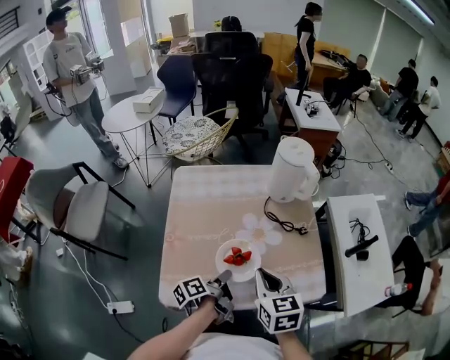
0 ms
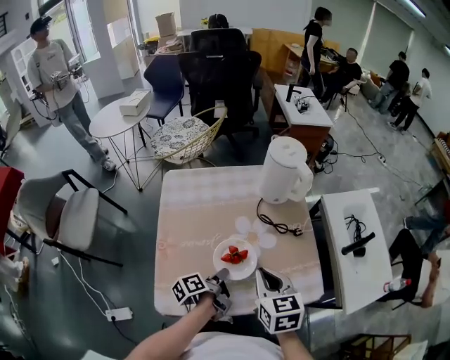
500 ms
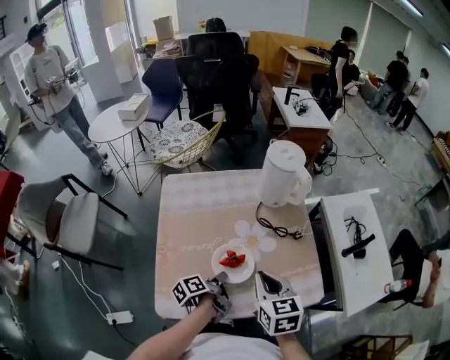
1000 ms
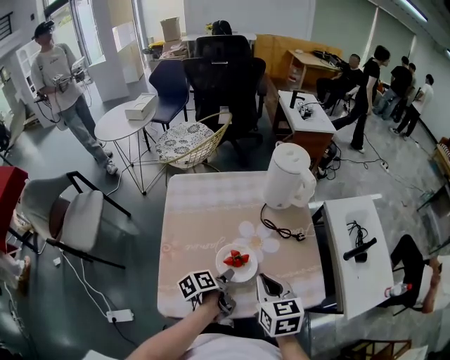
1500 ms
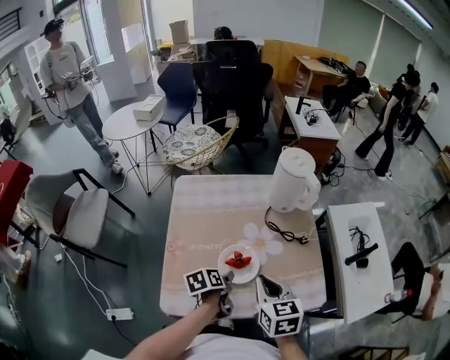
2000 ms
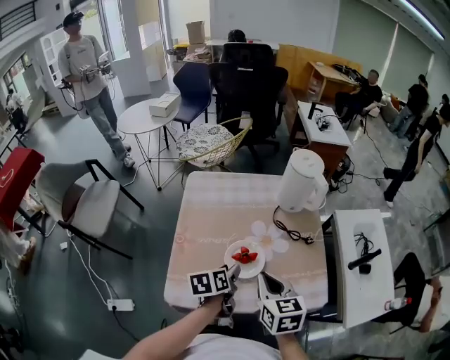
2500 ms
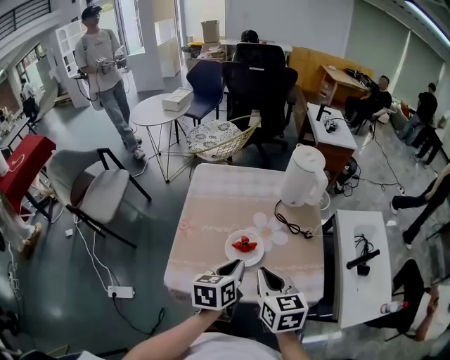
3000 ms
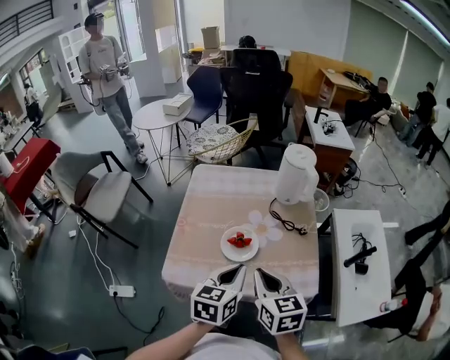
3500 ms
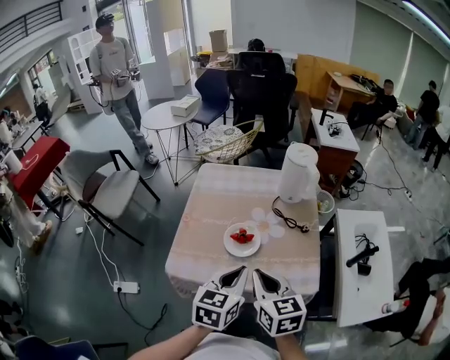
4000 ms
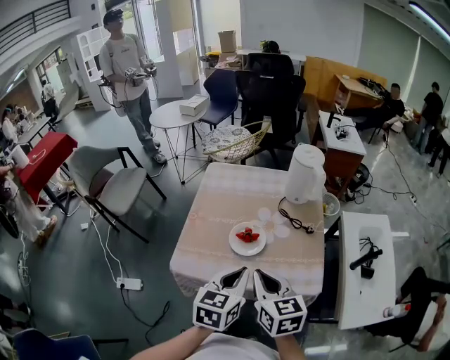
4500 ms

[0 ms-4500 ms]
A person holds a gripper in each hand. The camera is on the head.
2000 ms to 4500 ms: The right gripper moves roughly 15 cm.

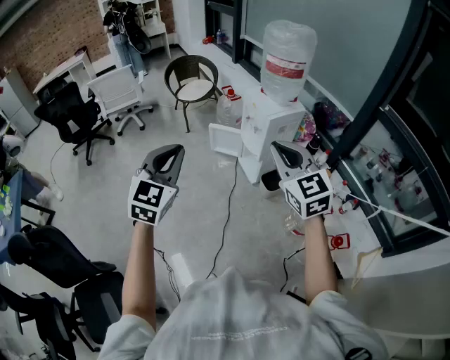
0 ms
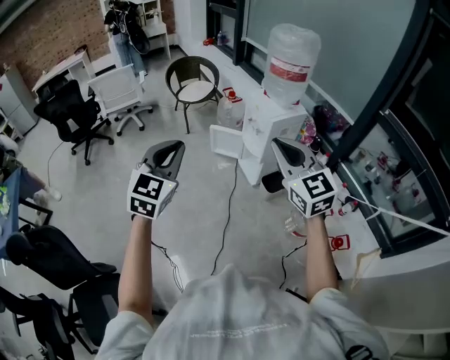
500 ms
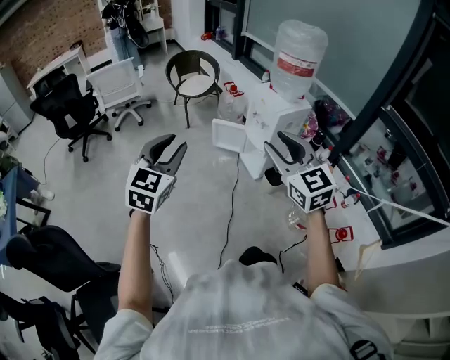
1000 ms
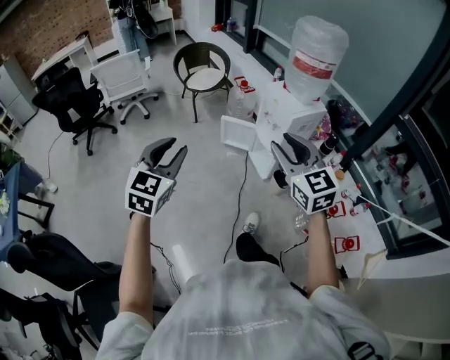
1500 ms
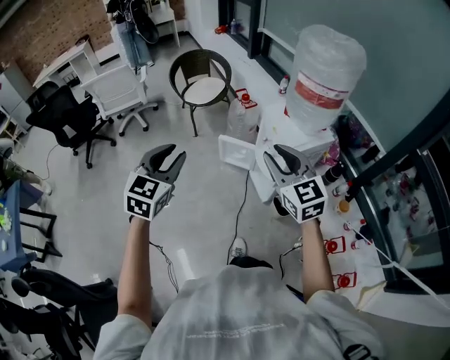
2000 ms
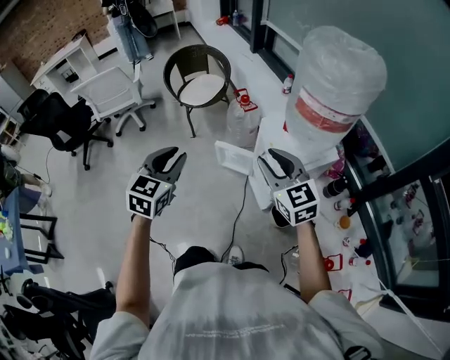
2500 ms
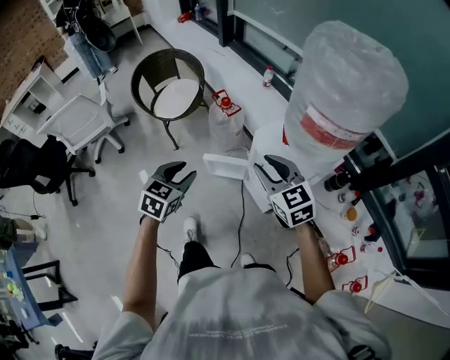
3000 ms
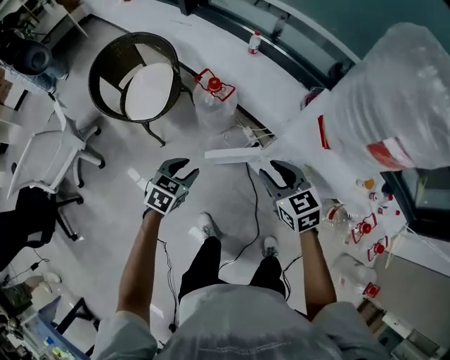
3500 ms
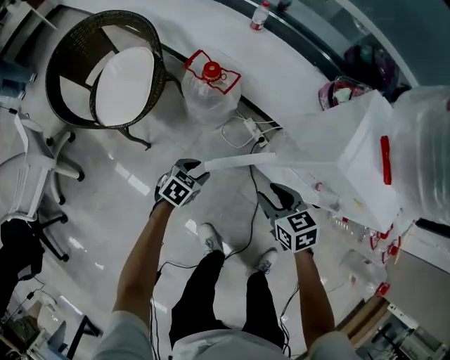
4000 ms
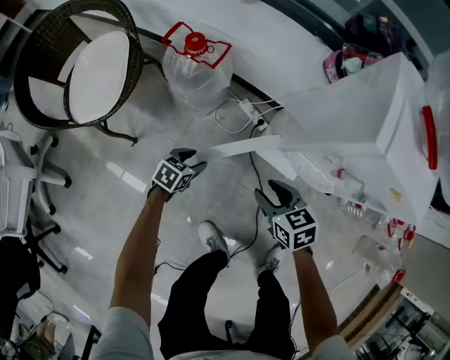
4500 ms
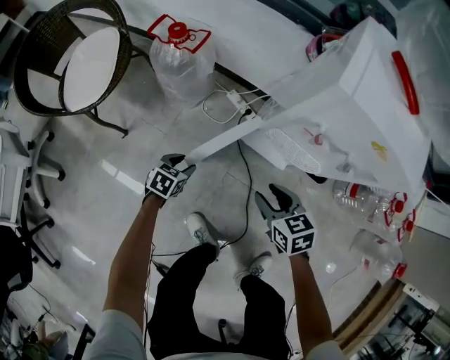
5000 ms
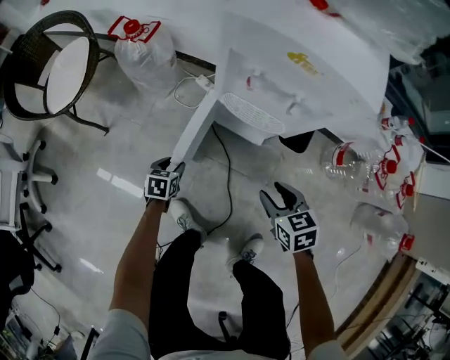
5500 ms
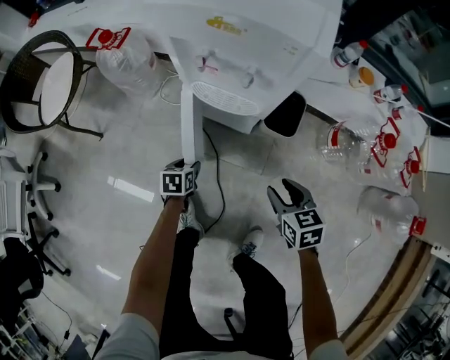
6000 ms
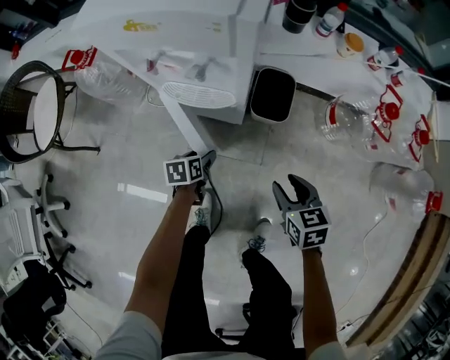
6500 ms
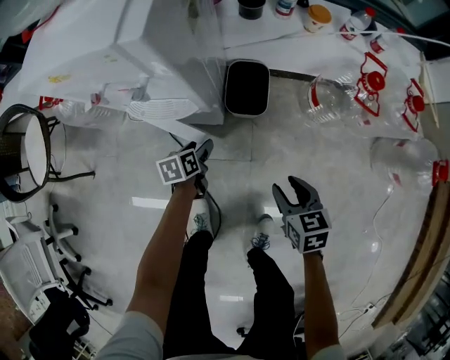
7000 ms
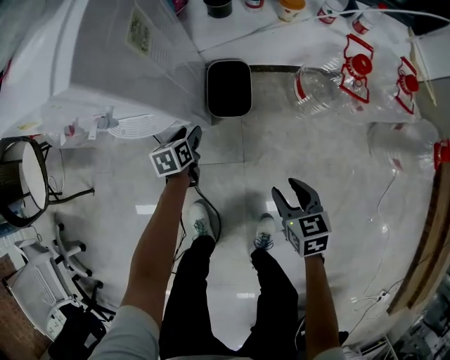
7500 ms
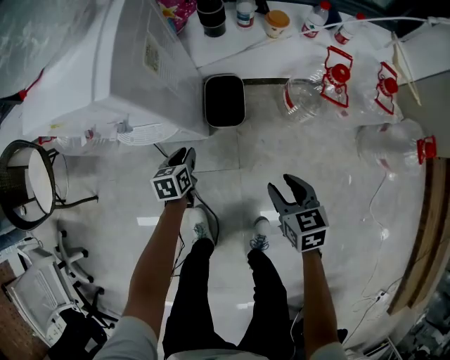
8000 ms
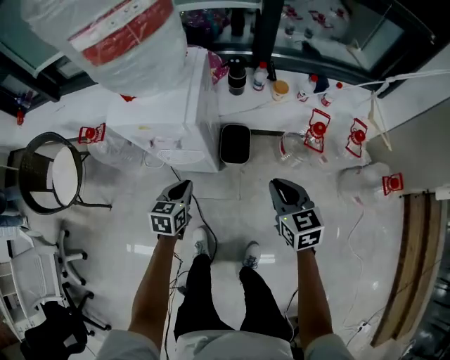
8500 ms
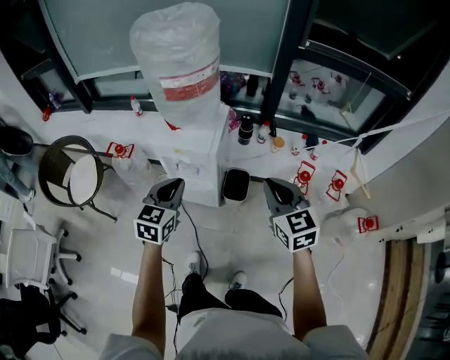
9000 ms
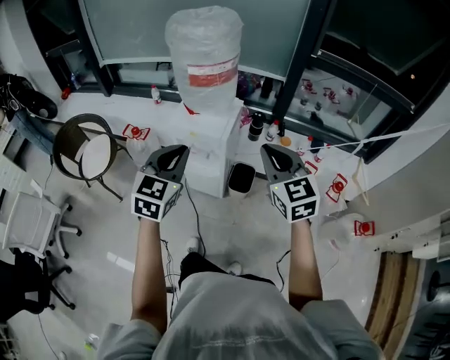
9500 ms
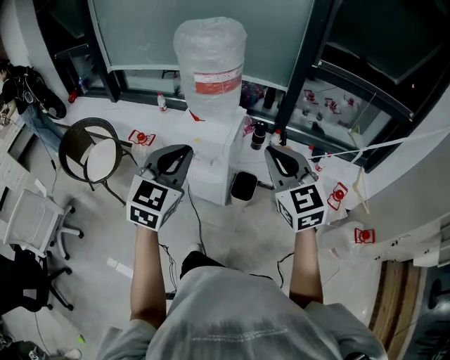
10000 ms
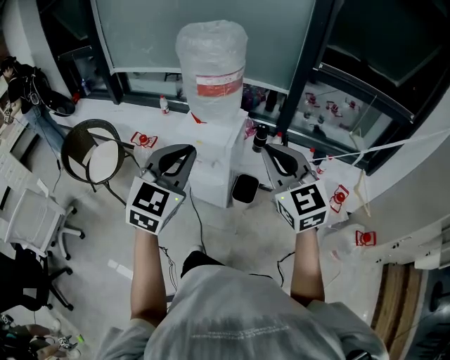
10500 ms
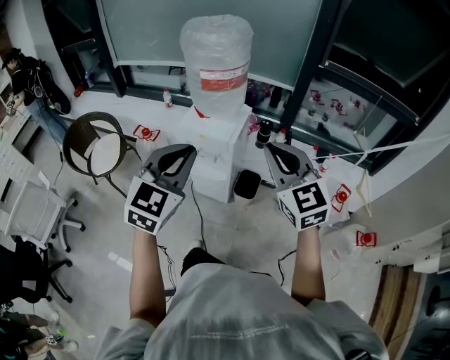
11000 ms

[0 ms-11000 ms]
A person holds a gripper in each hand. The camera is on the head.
0 ms to 2000 ms: Both grippers move forward, some 30 cm. The left gripper opens its fingers. Meanwhile the right gripper opens.
2000 ms to 3500 ms: The right gripper moves about 40 cm, and changes its angle by about 40 degrees. The left gripper moves about 60 cm, and rotates some 50 degrees.
3500 ms to 5500 ms: The right gripper moves downward, to the right and backward, about 40 cm, and changes its angle by approximately 30 degrees. Meanwhile the left gripper travels downward by roughly 40 cm.
5500 ms to 7500 ms: The left gripper shifts some 40 cm to the right and forward. Meanwhile the right gripper heads to the right, covering some 30 cm, and rotates roughly 30 degrees.
7500 ms to 9000 ms: The two grippers go some 60 cm upward. The left gripper swivels roughly 40 degrees, and closes up; the right gripper angles its fingers upward, by approximately 30 degrees, and closes its fingers.
9000 ms to 11000 ms: The left gripper heads upward and backward, covering some 25 cm, and changes its angle by some 20 degrees; the right gripper goes approximately 15 cm upward, and swivels some 20 degrees.

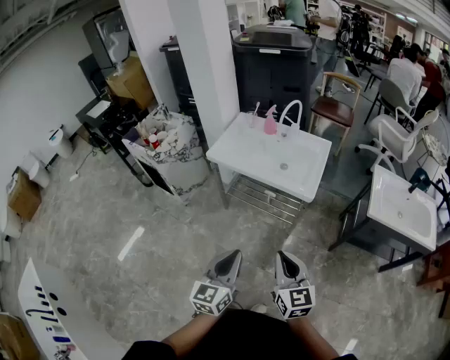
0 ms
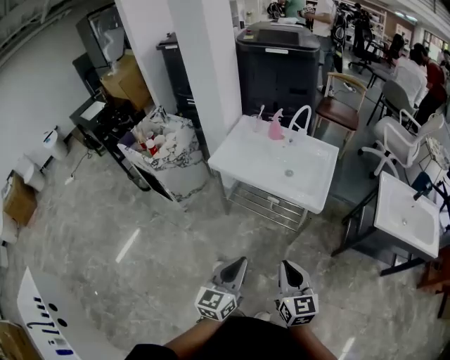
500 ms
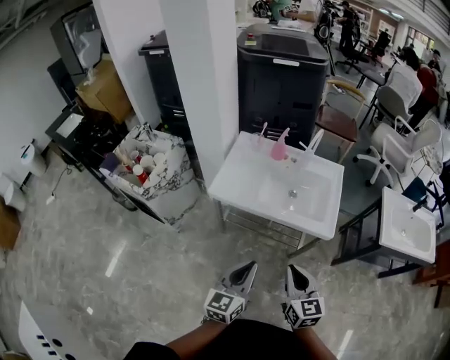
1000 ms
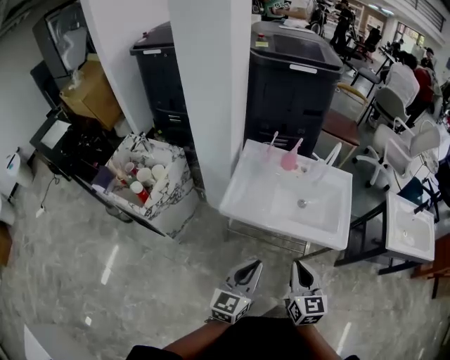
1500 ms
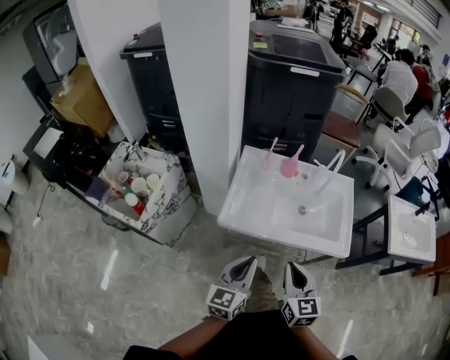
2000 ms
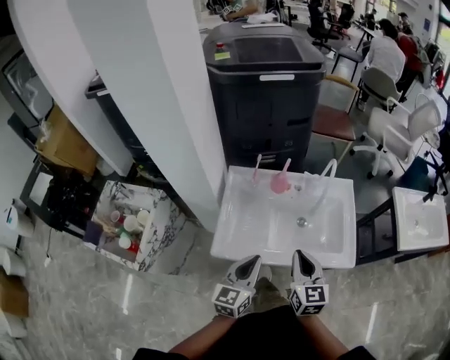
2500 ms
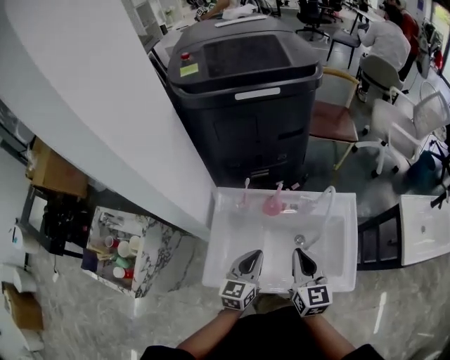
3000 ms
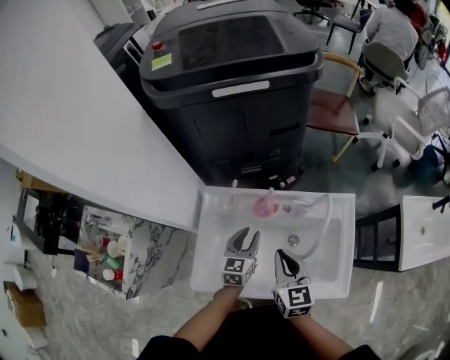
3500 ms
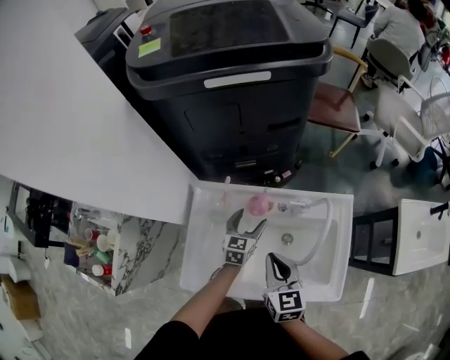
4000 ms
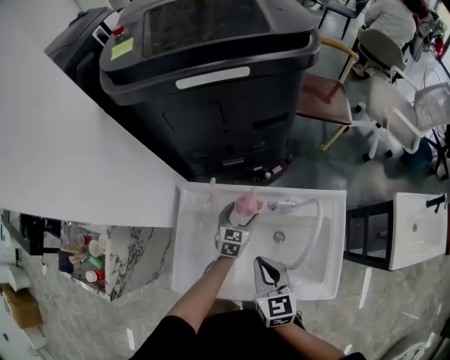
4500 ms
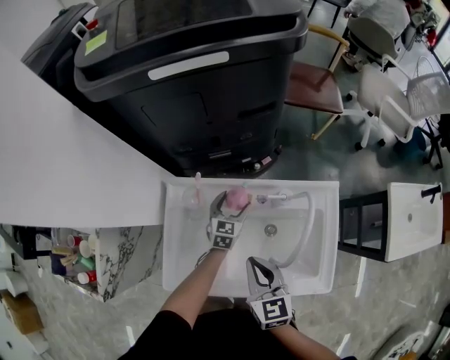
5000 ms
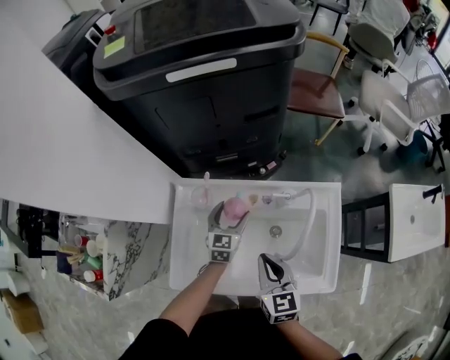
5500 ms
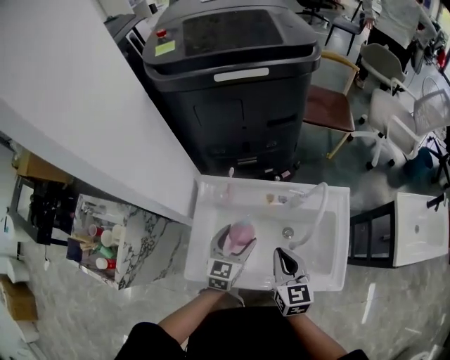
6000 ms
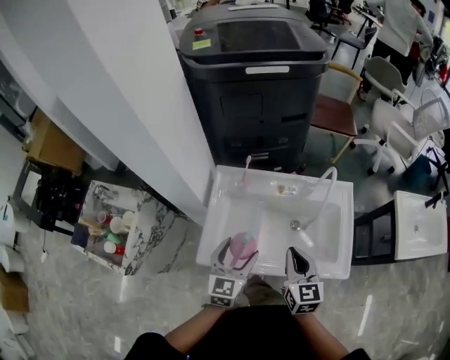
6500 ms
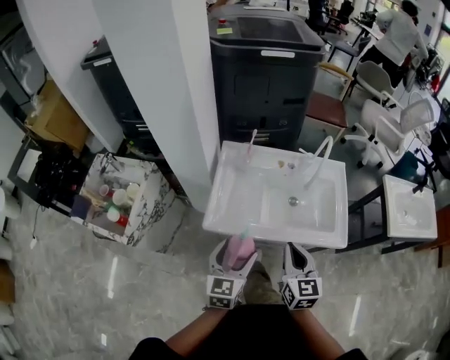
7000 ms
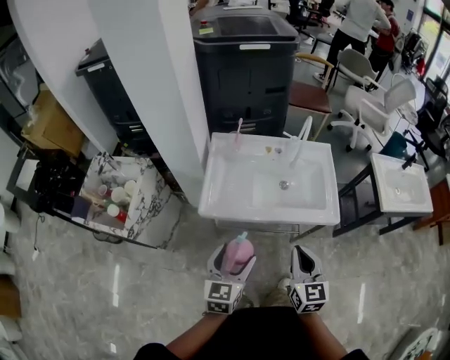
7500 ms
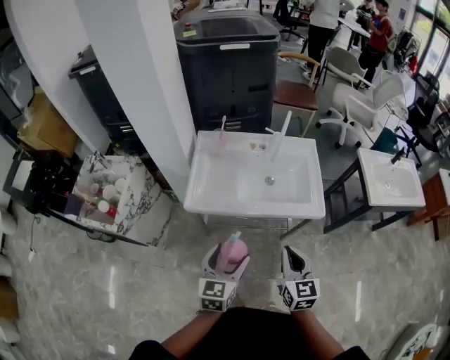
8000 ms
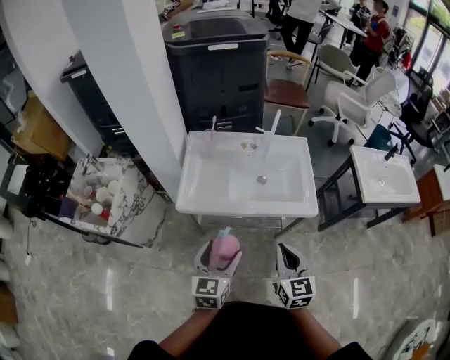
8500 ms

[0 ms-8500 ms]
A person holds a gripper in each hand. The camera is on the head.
0 ms to 2000 ms: The two grippers travel together, forward and to the left, roughly 50 cm. The right gripper turns by approximately 20 degrees.
2000 ms to 4000 ms: The right gripper is displaced forward by roughly 40 cm; the left gripper goes some 60 cm forward and downward, and opens.
4000 ms to 6500 ms: The right gripper heads backward, covering approximately 15 cm. The left gripper travels backward and upward by approximately 30 cm.
6500 ms to 8500 ms: The two grippers go approximately 30 cm backward.

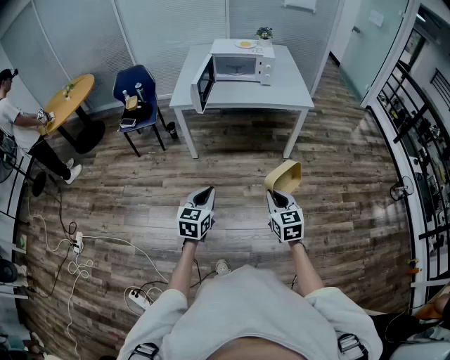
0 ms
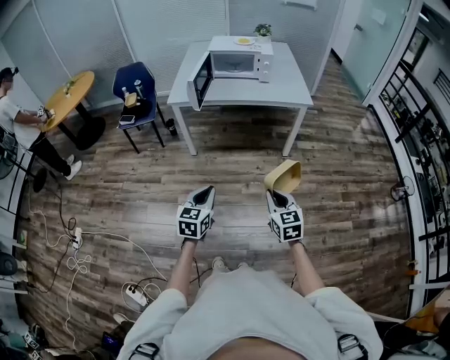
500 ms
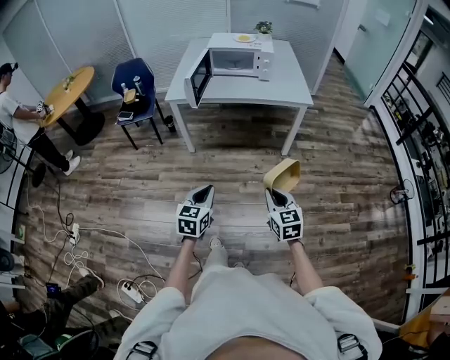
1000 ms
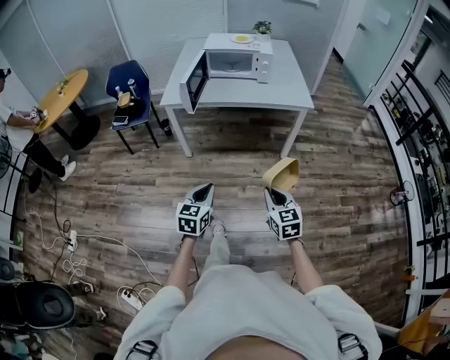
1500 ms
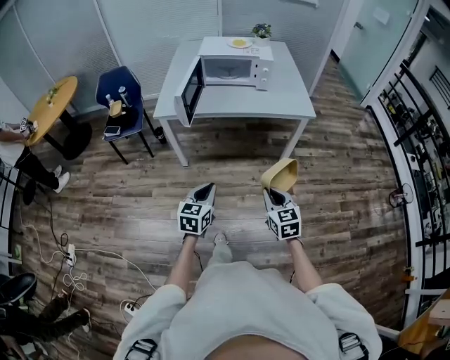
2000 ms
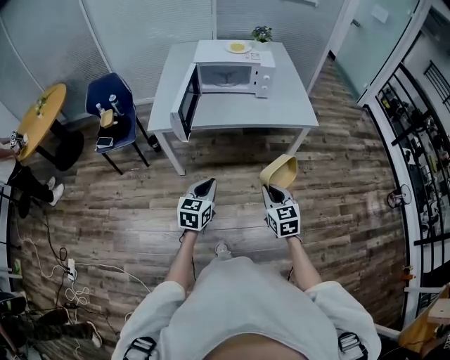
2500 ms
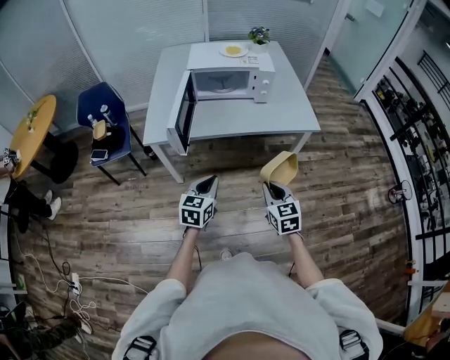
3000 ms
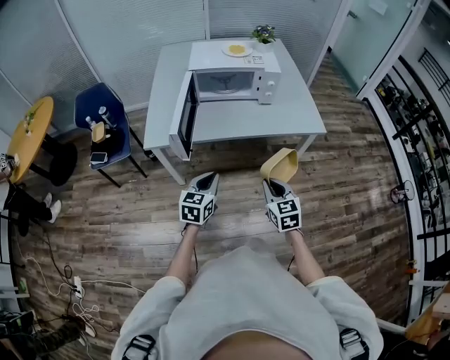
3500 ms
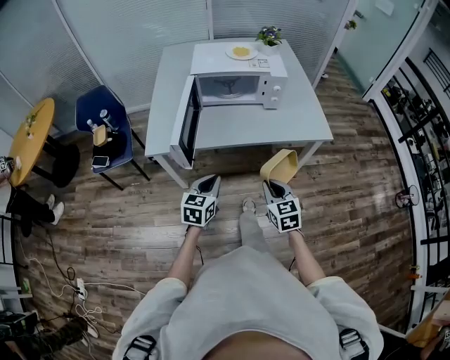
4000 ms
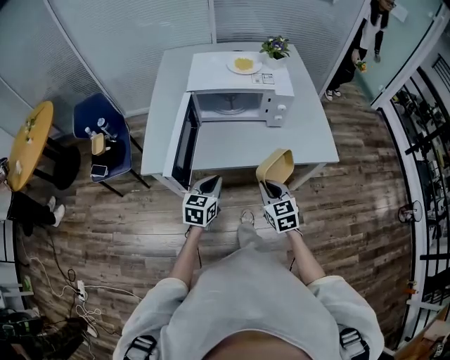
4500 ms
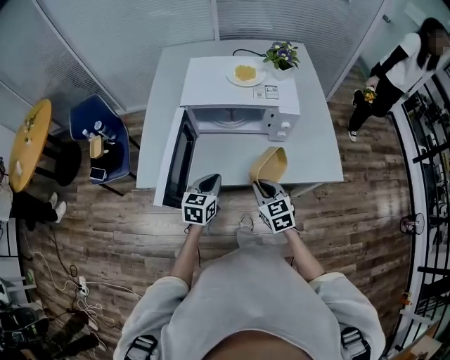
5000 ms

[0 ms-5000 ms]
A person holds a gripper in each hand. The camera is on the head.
0 ms to 2500 ms: Both grippers move forward, some 30 cm.
2500 ms to 5000 ms: Both grippers travel together forward, roughly 40 cm.
